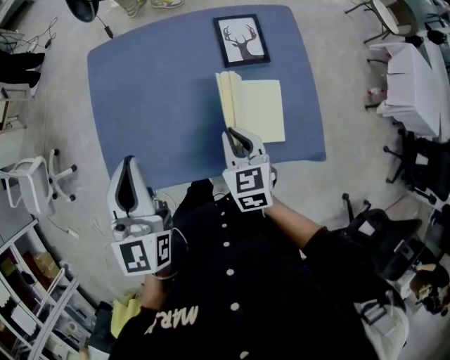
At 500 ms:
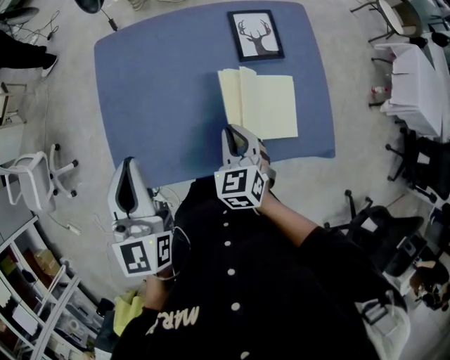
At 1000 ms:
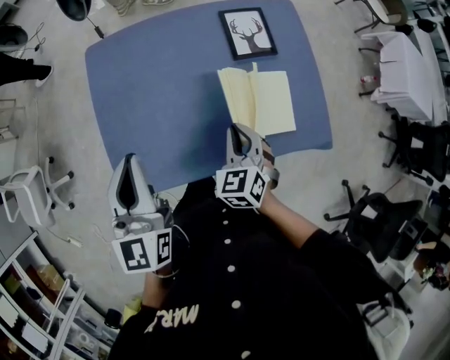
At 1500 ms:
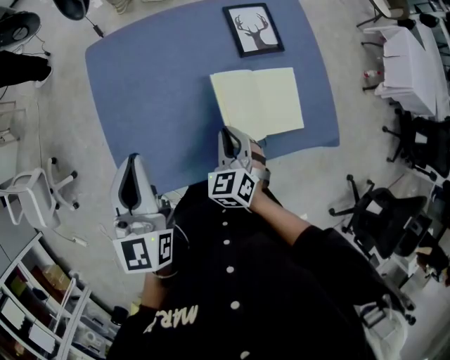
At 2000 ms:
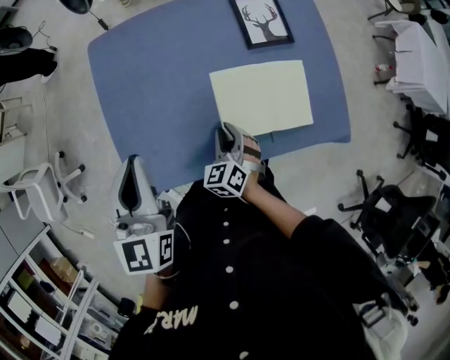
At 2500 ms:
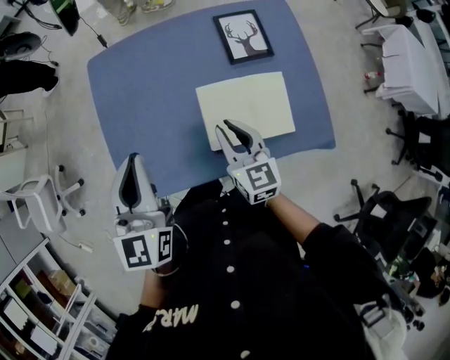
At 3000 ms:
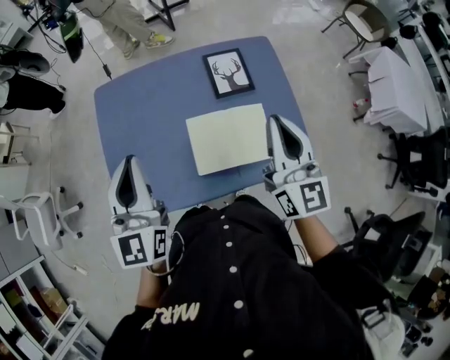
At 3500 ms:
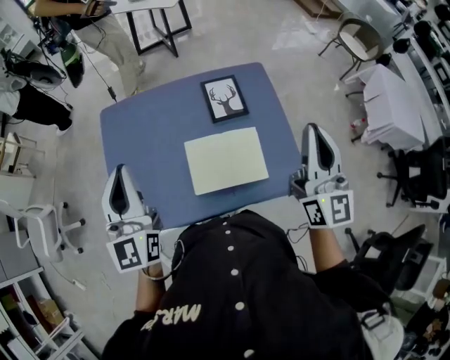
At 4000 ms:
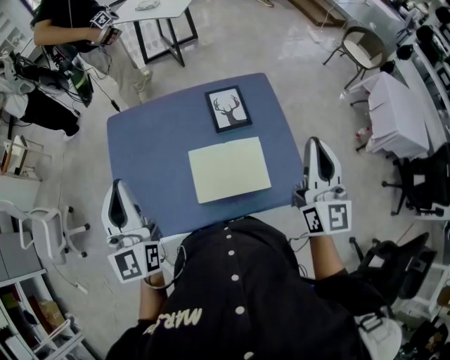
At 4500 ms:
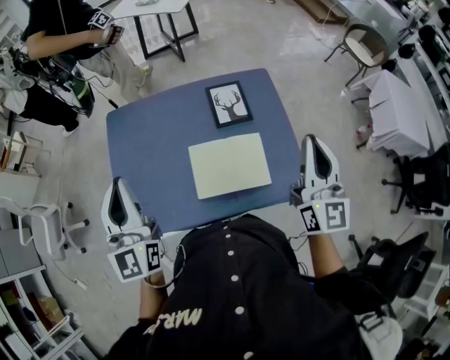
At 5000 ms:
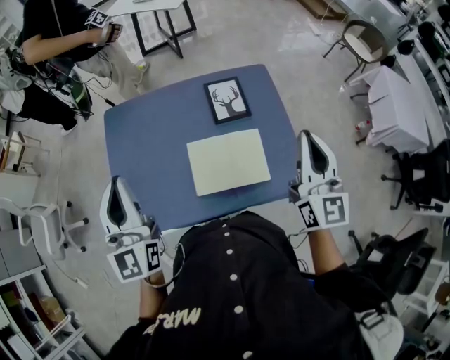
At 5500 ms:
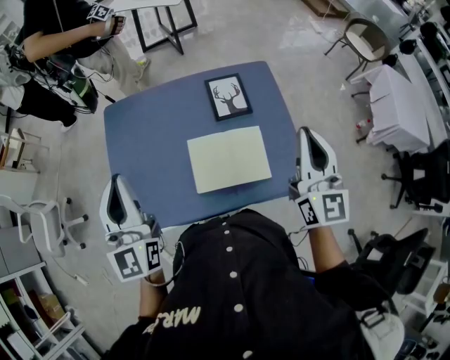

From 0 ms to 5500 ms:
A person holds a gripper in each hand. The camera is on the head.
From 0 ms to 2000 ms: The right gripper heads downward and to the left, covering some 15 cm, and swivels about 30 degrees. Meanwhile the left gripper goes about 10 cm to the left.
From 2000 ms to 3500 ms: The left gripper heads upward and to the right, covering about 15 cm, and swivels about 20 degrees; the right gripper is displaced upward and to the right by about 50 cm, and tilts its fingers about 60 degrees upward.
From 3500 ms to 5500 ms: The grippers make only small movements.

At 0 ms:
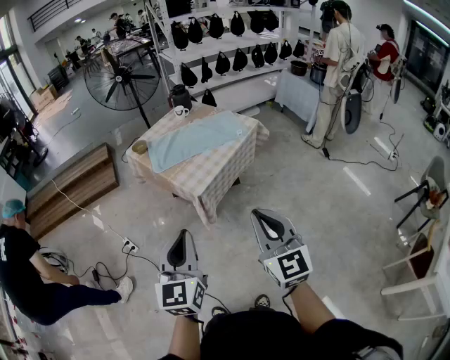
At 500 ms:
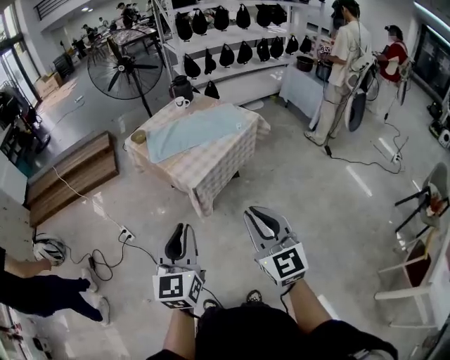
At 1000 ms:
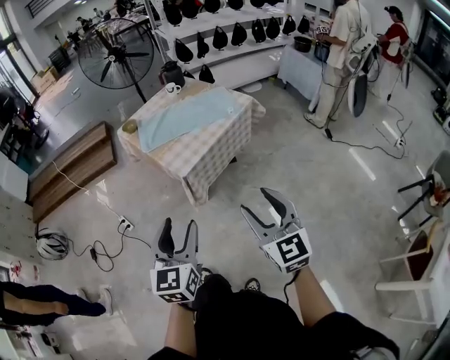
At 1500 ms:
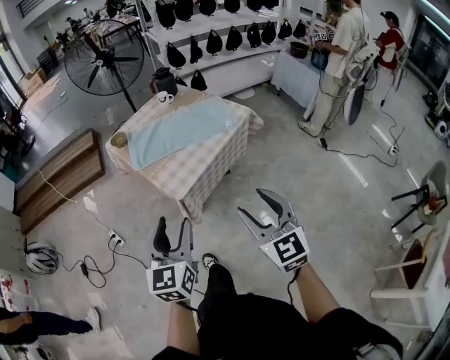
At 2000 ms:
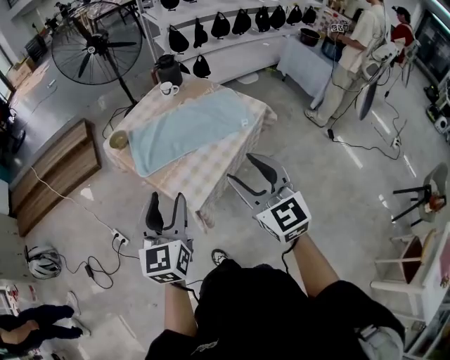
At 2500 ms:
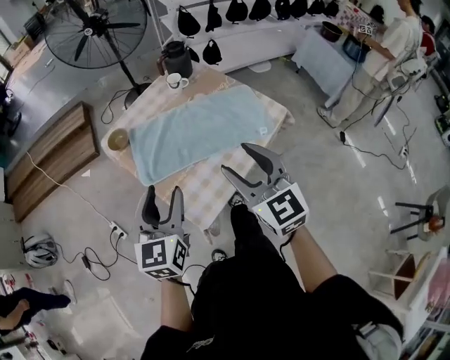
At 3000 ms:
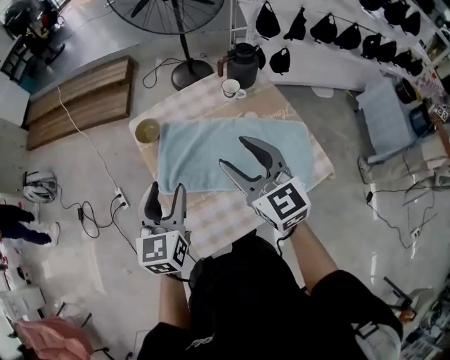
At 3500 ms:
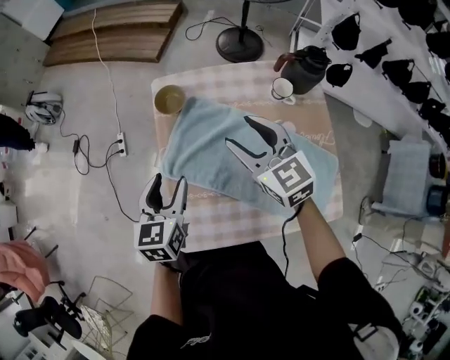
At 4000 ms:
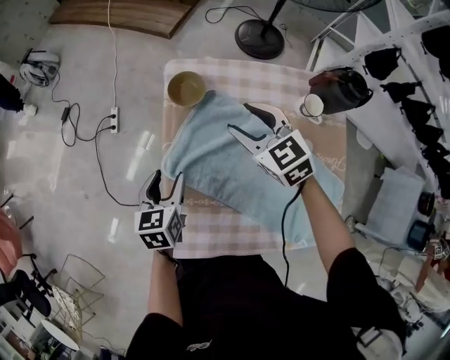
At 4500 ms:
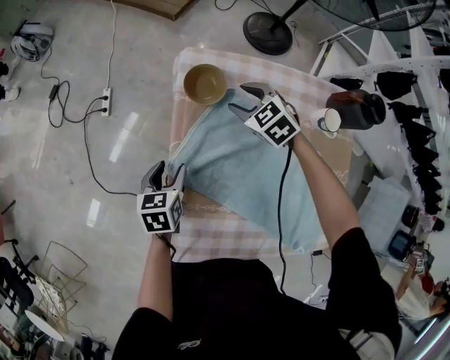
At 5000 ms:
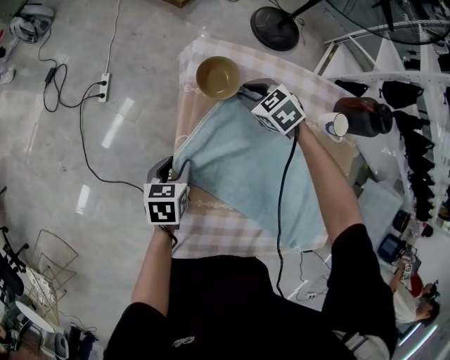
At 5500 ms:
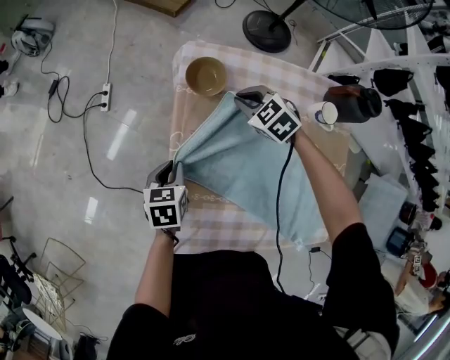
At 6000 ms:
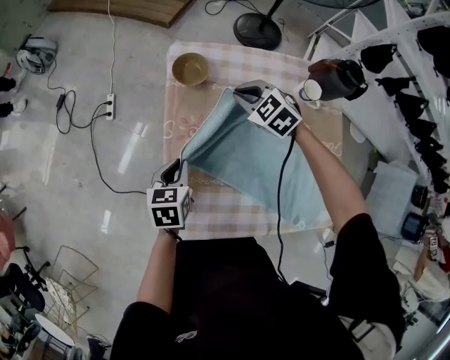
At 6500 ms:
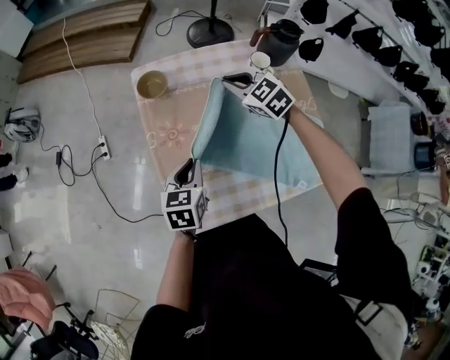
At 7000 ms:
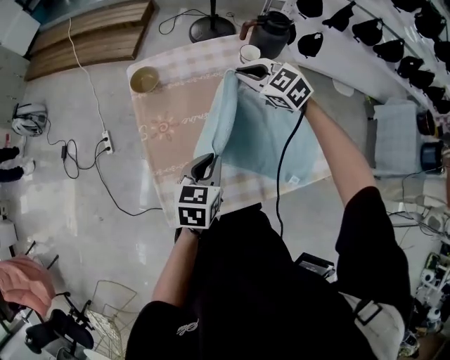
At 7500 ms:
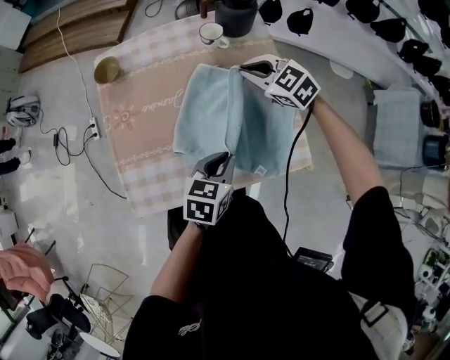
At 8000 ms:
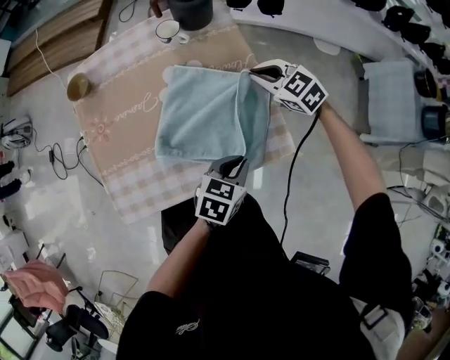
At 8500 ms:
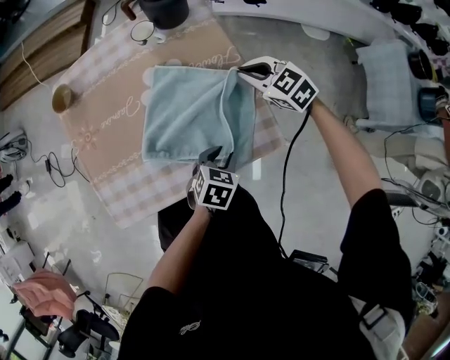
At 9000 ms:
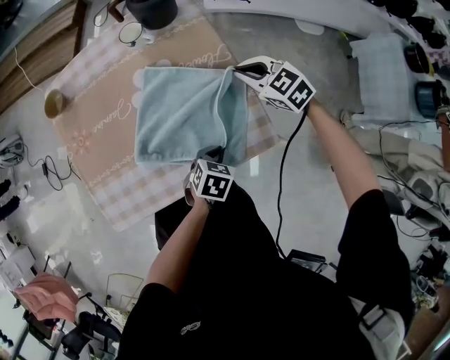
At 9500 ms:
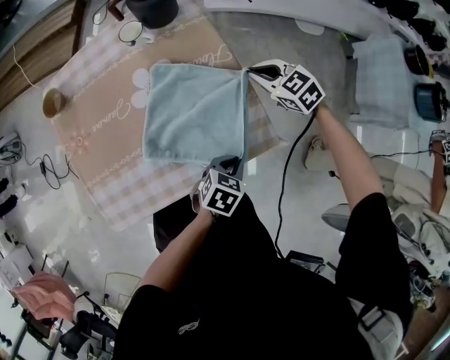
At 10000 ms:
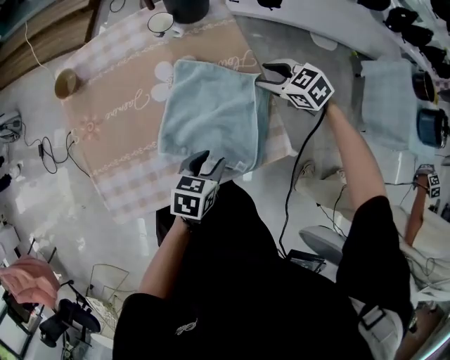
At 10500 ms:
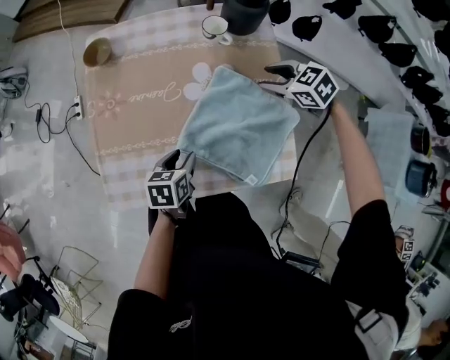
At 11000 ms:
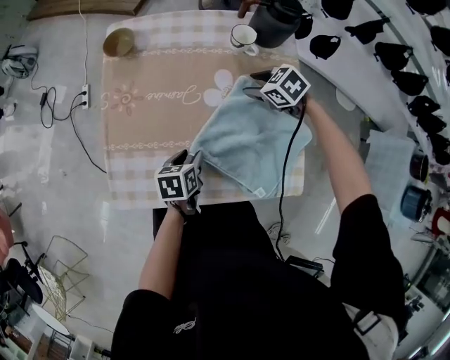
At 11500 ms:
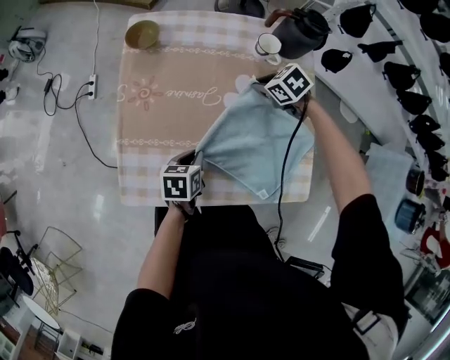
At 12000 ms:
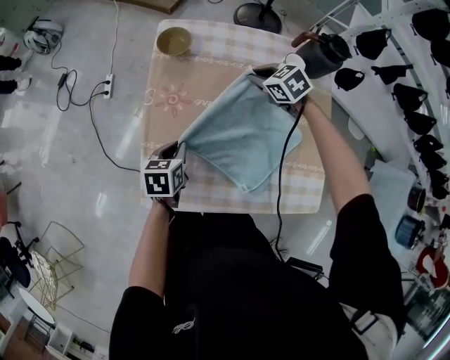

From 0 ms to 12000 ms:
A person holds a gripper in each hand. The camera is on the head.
From 0 ms to 2000 ms: The grippers both shift forward by approximately 35 cm. The left gripper opens its fingers, while the right gripper opens its fingers.
From 2000 ms to 4000 ms: The left gripper moves approximately 50 cm, and points its fingers roughly 30 degrees further downward, while the right gripper shifts by roughly 60 cm, and changes its angle by about 70 degrees.
From 4000 ms to 6000 ms: The left gripper goes downward and returns, approximately 10 cm each way, and closes; the right gripper is displaced downward by approximately 5 cm, turns by some 20 degrees, and closes.
From 6000 ms to 8000 ms: The two grippers travel together, about 50 cm. The right gripper rotates about 20 degrees. Meanwhile the left gripper swivels roughly 50 degrees.
From 8000 ms to 10000 ms: The left gripper is displaced to the left by roughly 5 cm, and opens, while the right gripper opens its fingers.
From 10000 ms to 12000 ms: The right gripper goes downward and returns, roughly 5 cm each way, and closes, while the left gripper moves approximately 35 cm, rotates approximately 40 degrees, and closes.

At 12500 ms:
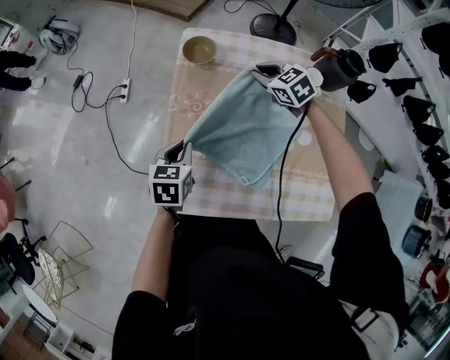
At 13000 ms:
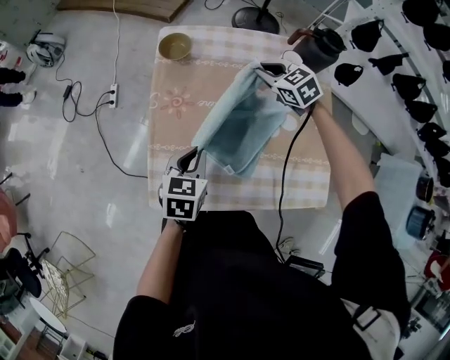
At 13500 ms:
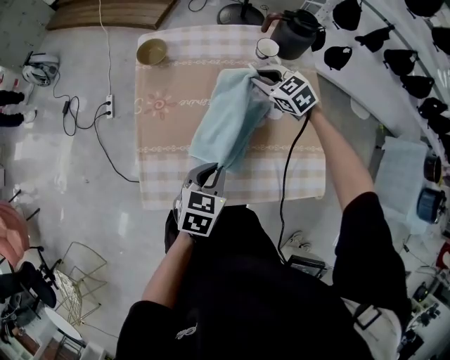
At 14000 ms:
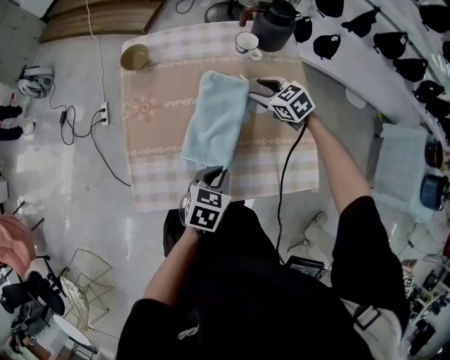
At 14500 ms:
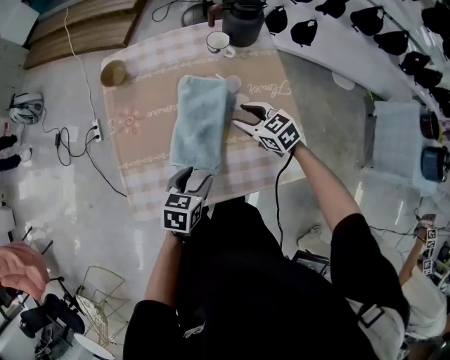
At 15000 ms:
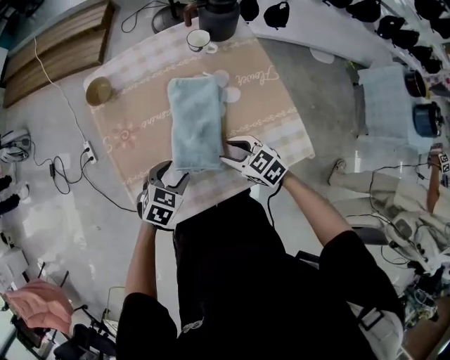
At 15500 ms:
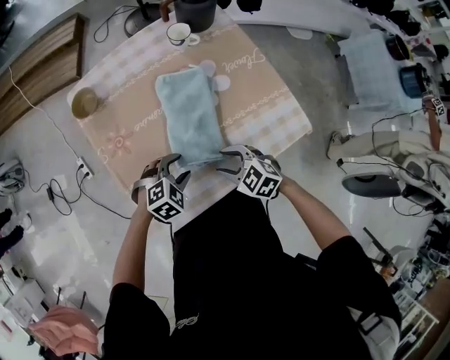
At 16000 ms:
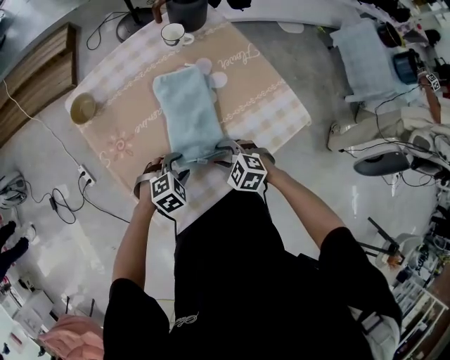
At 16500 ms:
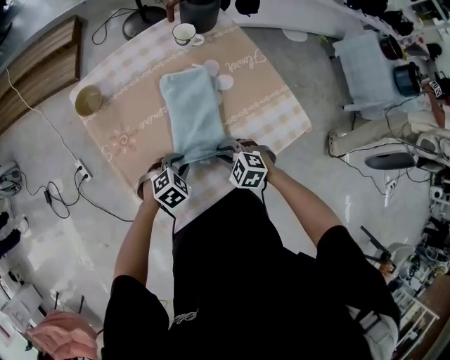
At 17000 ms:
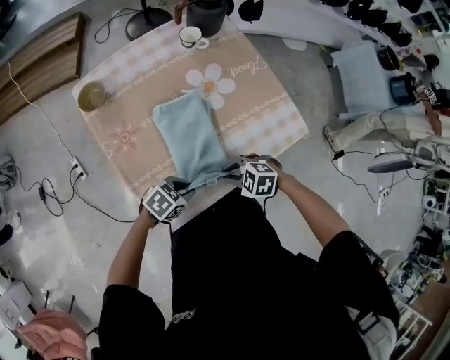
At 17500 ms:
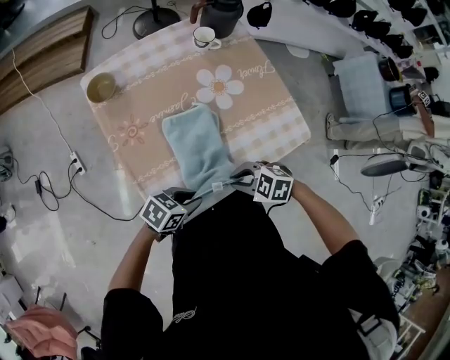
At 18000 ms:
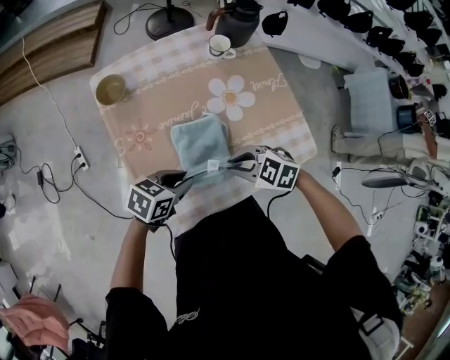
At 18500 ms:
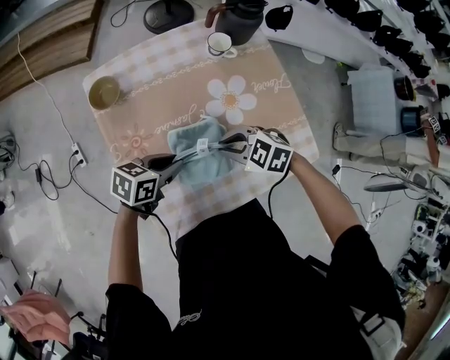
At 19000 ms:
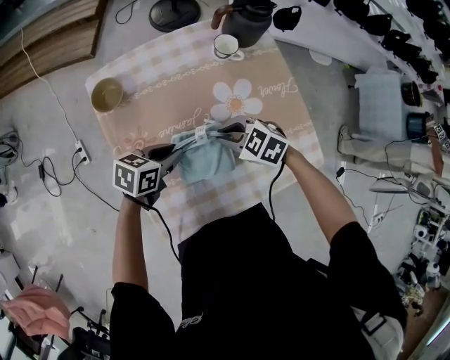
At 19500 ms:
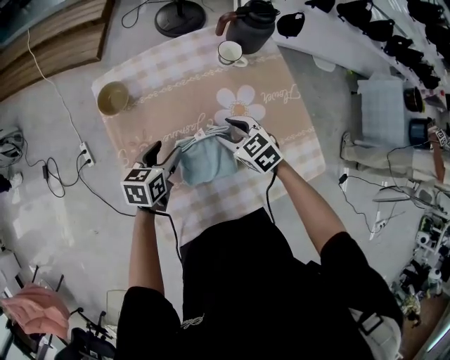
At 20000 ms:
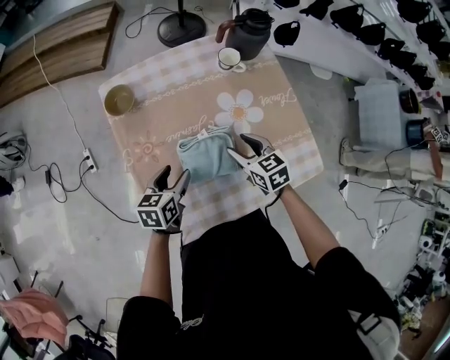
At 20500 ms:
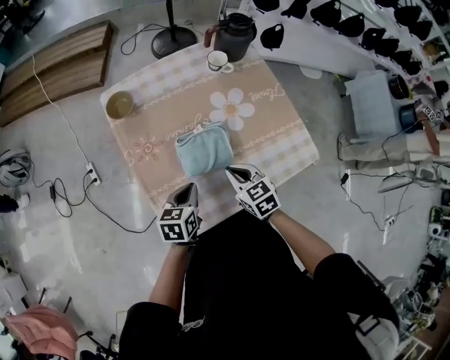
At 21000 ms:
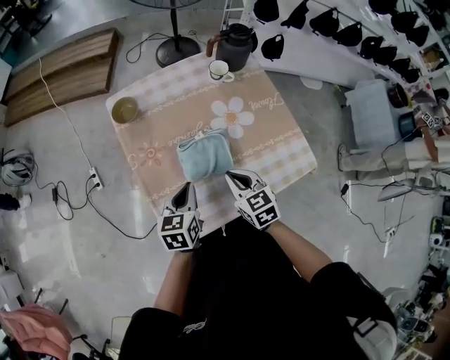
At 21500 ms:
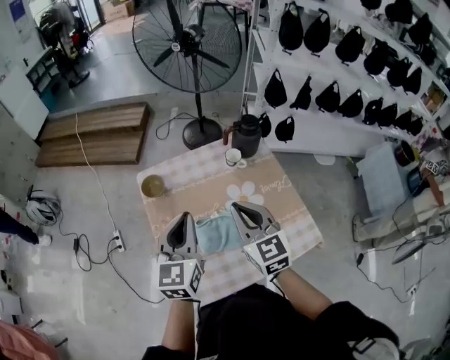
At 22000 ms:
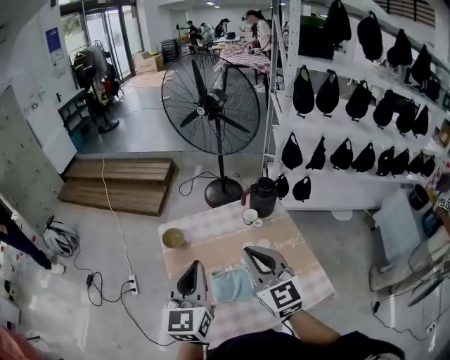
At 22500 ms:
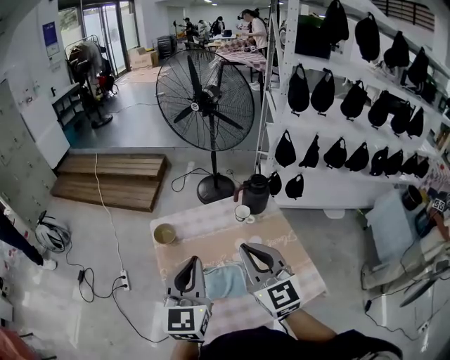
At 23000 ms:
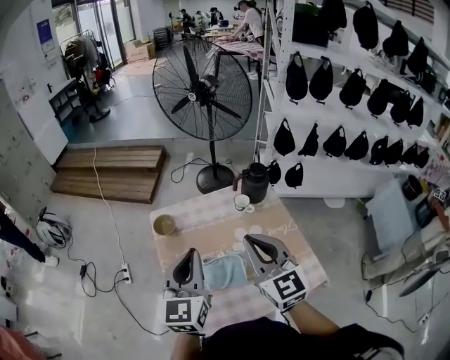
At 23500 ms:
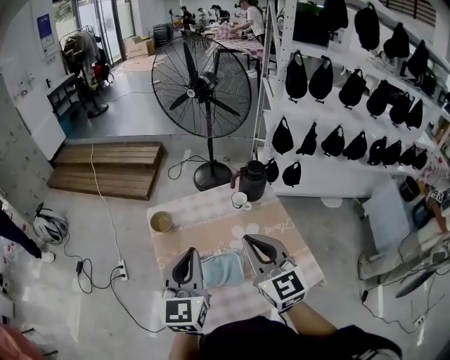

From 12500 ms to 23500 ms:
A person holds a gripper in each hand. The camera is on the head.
From 12500 ms to 14500 ms: The right gripper is displaced backward and to the right by roughly 30 cm, turns by some 20 degrees, and opens its fingers; the left gripper shifts roughly 25 cm to the right and backward, changes its angle by some 30 degrees, and opens up.
From 14500 ms to 16000 ms: The right gripper travels backward, to the left and downward by some 20 cm, and changes its angle by roughly 20 degrees. The left gripper is displaced downward and to the left by some 15 cm, and rolls clockwise, seen from behind, by approximately 70 degrees.
From 16000 ms to 18000 ms: The grippers both shift upward by some 10 cm. The left gripper twists roughly 50 degrees counterclockwise, seen from behind, and closes up; the right gripper changes its angle by roughly 20 degrees, and closes its fingers.
From 18000 ms to 20000 ms: The right gripper ends up roughly 15 cm from where it was, swivels approximately 40 degrees, and opens up, while the left gripper rotates approximately 40 degrees, and opens up.
From 20000 ms to 21500 ms: Both grippers move upward, some 30 cm. The left gripper turns by some 40 degrees, and closes up. The right gripper rotates roughly 30 degrees, and closes its fingers.
From 21500 ms to 23500 ms: The grippers both shift upward by some 5 cm.
